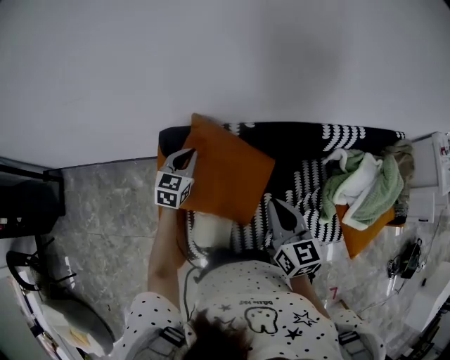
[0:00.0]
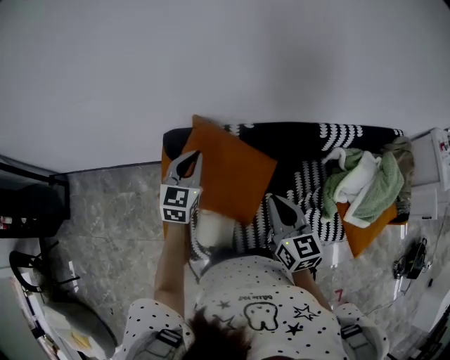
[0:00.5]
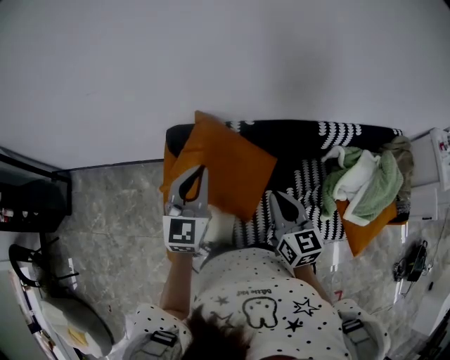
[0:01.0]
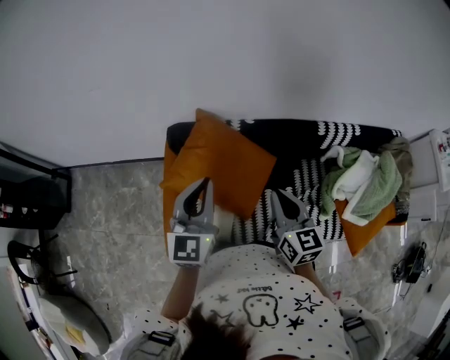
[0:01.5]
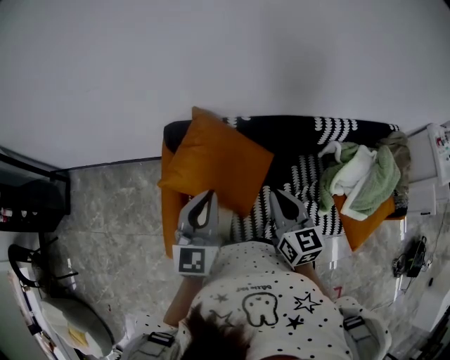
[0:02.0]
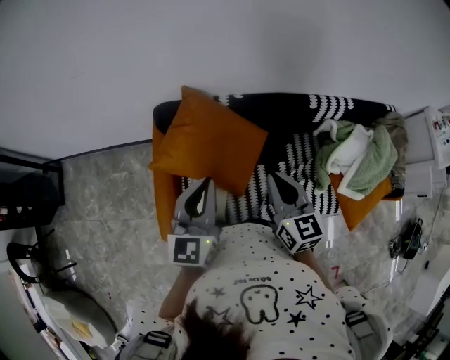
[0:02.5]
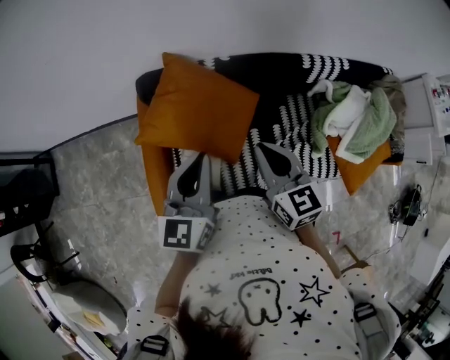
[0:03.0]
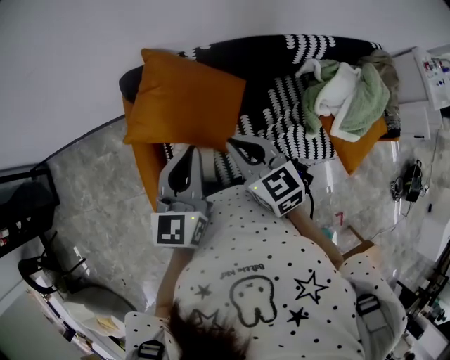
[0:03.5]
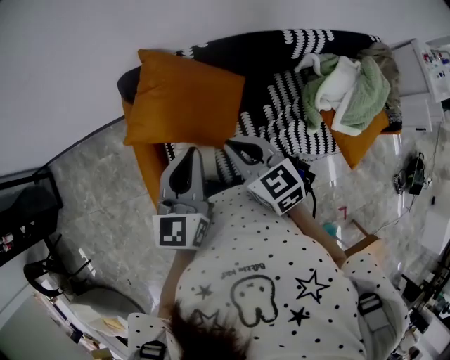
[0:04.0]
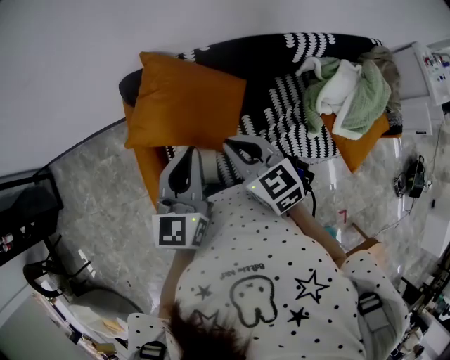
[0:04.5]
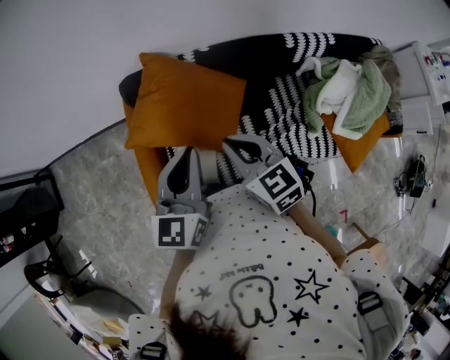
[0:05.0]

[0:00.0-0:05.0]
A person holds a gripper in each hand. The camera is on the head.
0:00.0 to 0:02.5: The right gripper moves backward, some 5 cm. The left gripper shifts some 30 cm backward and upward, and changes its angle by about 20 degrees.
0:02.5 to 0:05.0: The right gripper moves to the left, roughly 5 cm.

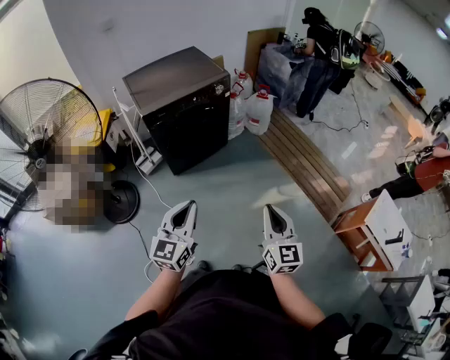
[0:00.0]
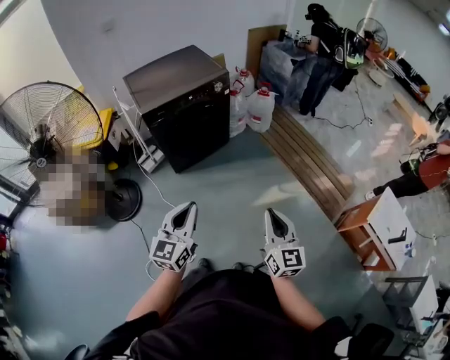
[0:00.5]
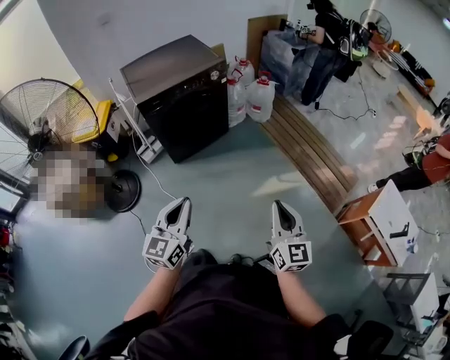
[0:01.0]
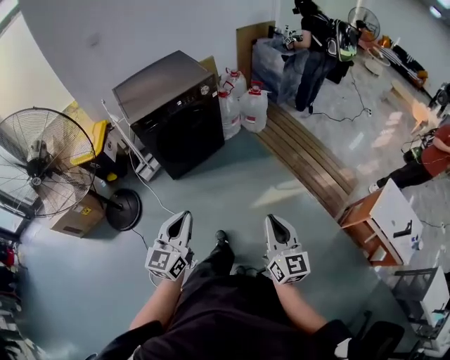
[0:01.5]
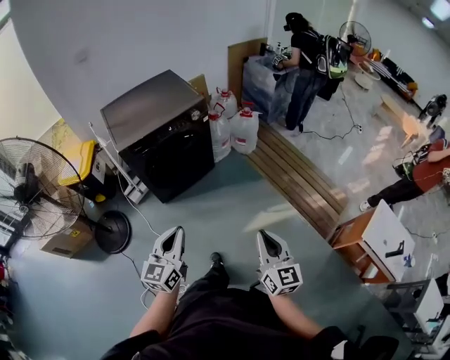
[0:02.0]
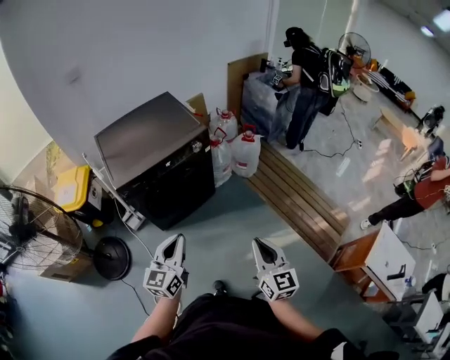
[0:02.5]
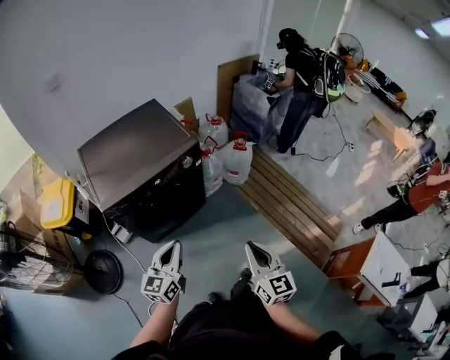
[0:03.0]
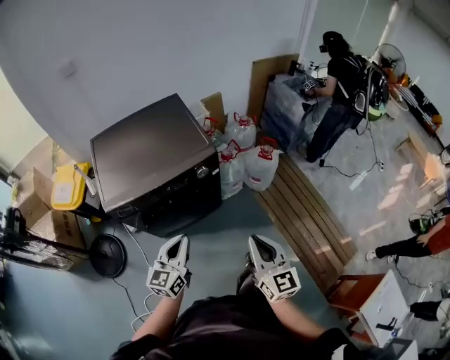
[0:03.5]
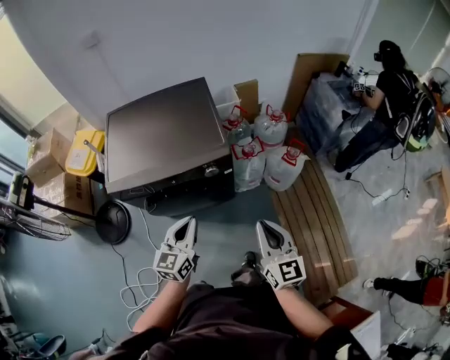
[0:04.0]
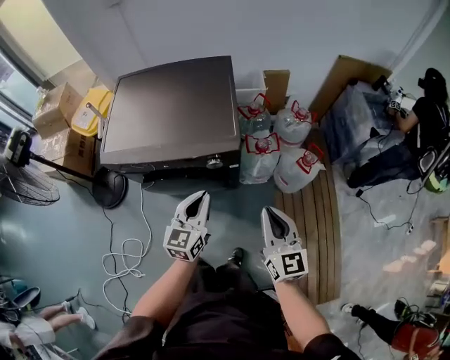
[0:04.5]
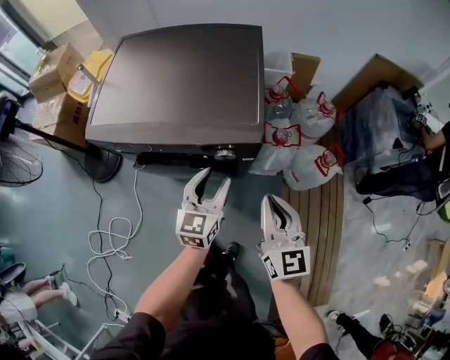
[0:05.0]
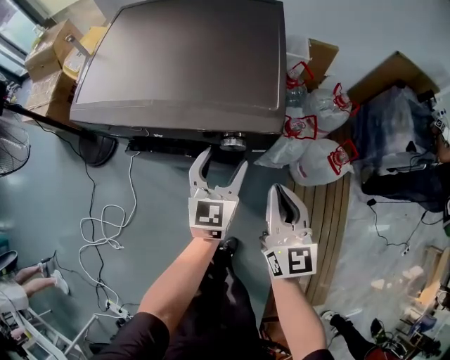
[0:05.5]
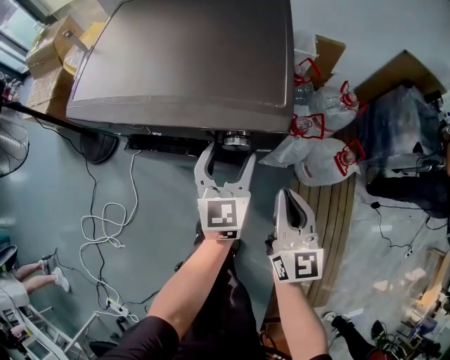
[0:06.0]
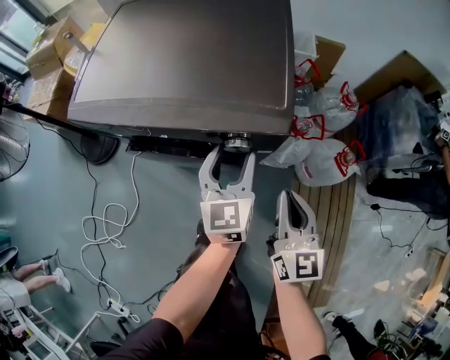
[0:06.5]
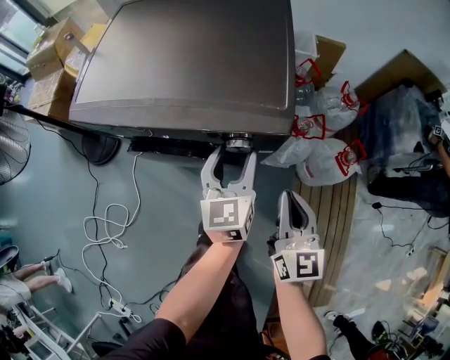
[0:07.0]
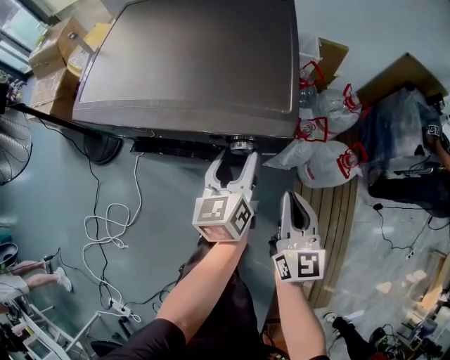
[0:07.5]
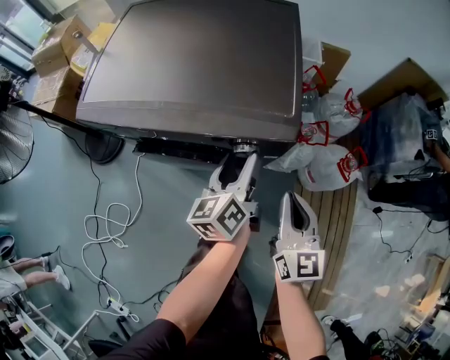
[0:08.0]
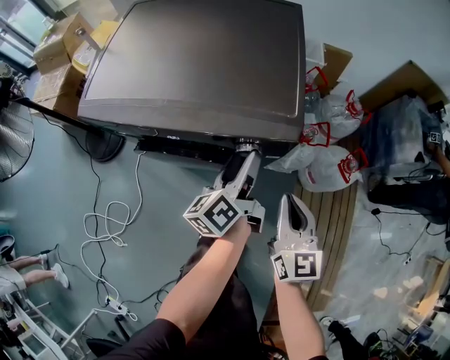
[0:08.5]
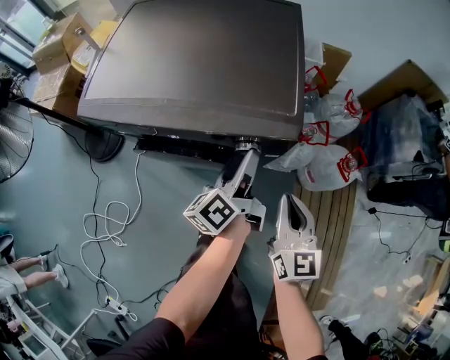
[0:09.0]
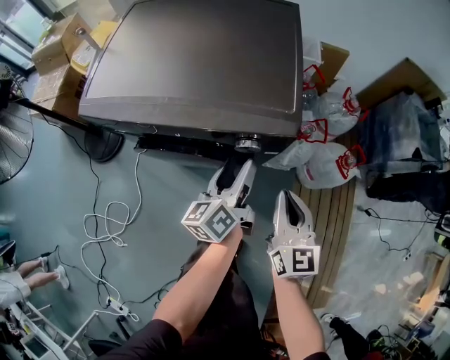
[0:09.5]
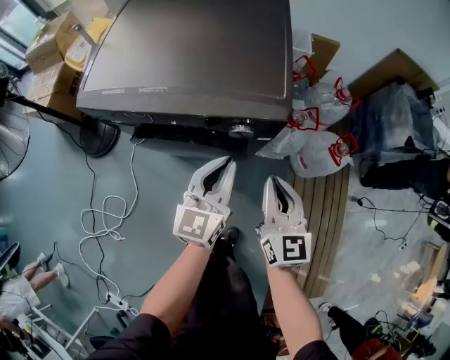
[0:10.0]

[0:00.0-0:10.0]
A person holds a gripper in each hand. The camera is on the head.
0:00.0 to 0:02.0: The right gripper travels to the right and forward by about 10 cm; the left gripper heads forward, covering approximately 10 cm.
0:02.0 to 0:04.0: Both grippers are carried forward, some 50 cm. The right gripper swivels roughly 30 degrees, while the left gripper changes its angle by about 20 degrees.
0:04.0 to 0:06.0: The left gripper is displaced forward and downward by approximately 30 cm, changes its angle by some 30 degrees, and opens its fingers. The right gripper moves downward and forward, roughly 30 cm.
0:06.0 to 0:08.0: The left gripper rotates around the line of its fingers by about 40 degrees, counterclockwise from behind.
0:08.0 to 0:10.0: The left gripper moves backward, about 5 cm, changes its angle by some 40 degrees, and closes its fingers.

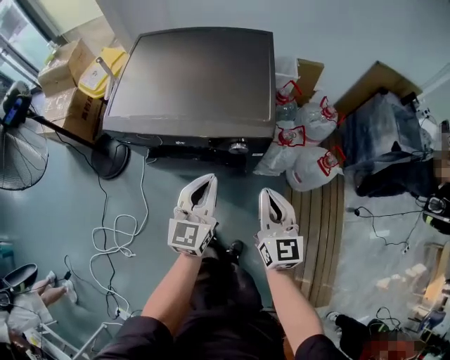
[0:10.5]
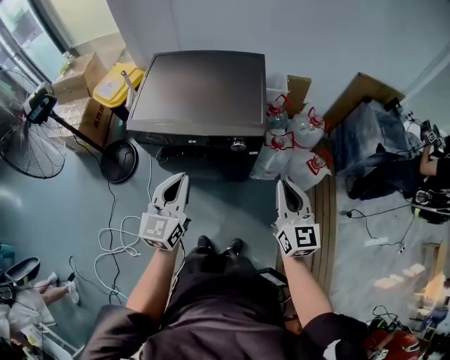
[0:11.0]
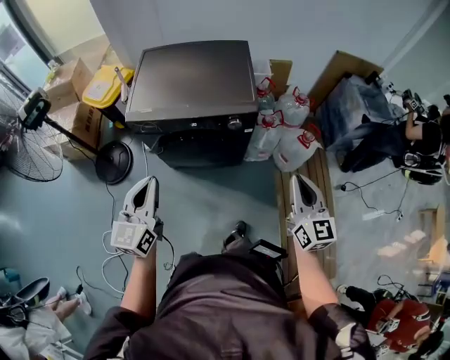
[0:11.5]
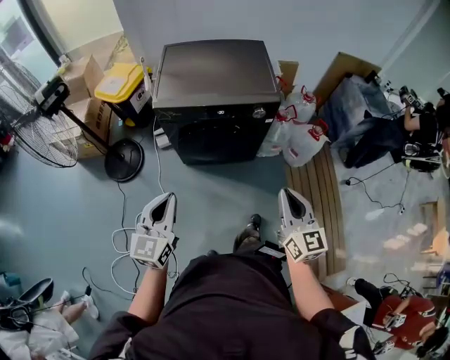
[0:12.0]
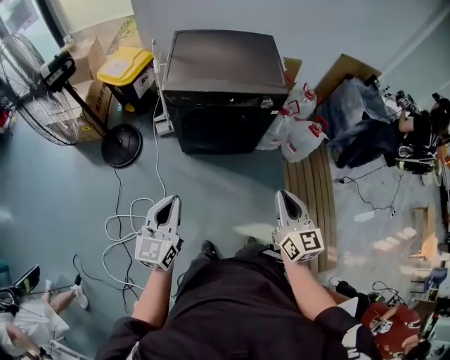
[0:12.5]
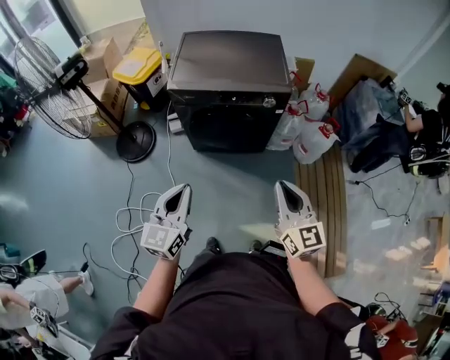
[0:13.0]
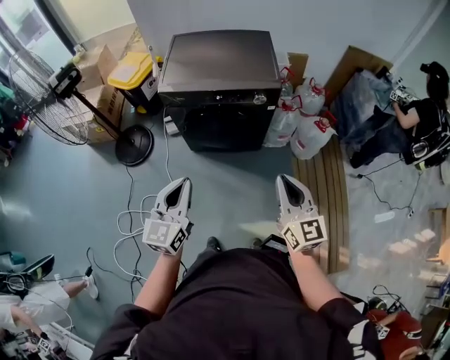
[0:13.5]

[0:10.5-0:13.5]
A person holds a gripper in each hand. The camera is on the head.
0:10.5 to 0:12.0: The right gripper shifts approximately 35 cm backward and upward; the left gripper is displaced backward, to the left and upward by about 50 cm.
0:12.0 to 0:13.5: The left gripper travels to the right by some 10 cm.

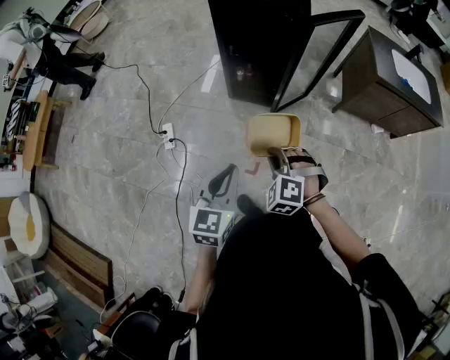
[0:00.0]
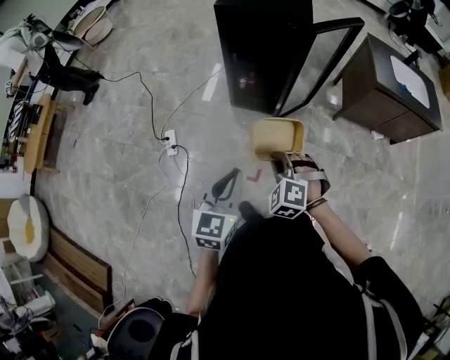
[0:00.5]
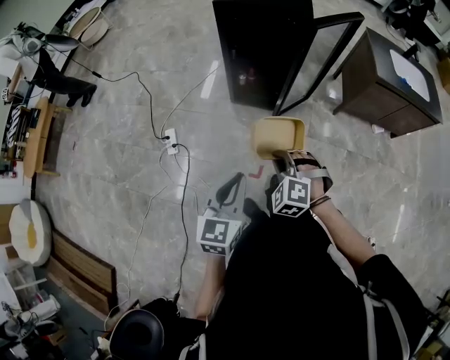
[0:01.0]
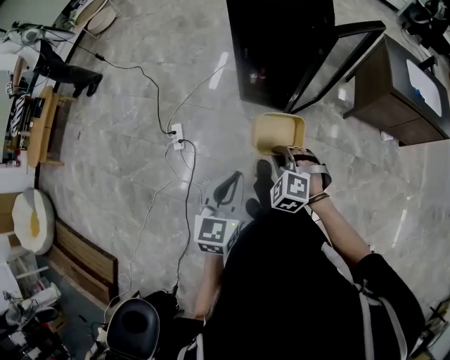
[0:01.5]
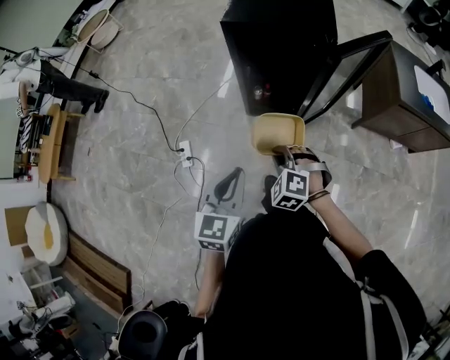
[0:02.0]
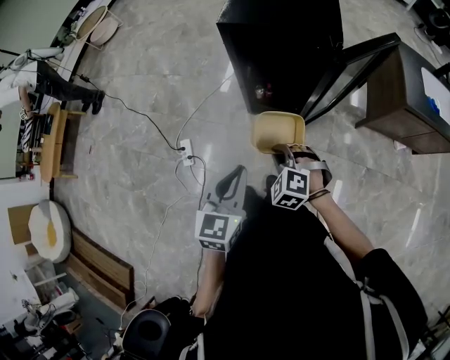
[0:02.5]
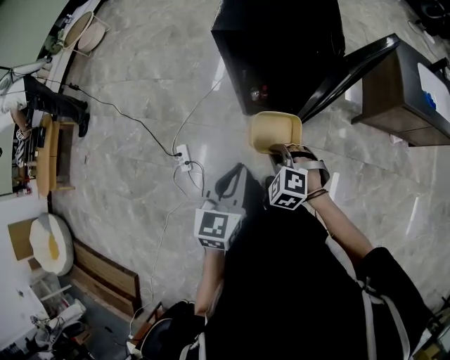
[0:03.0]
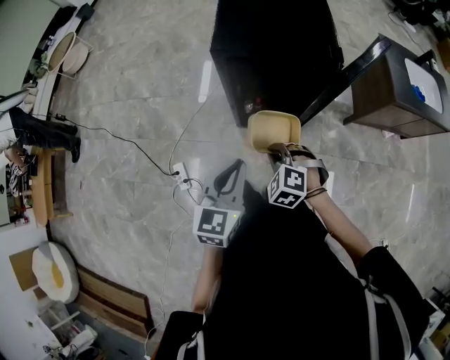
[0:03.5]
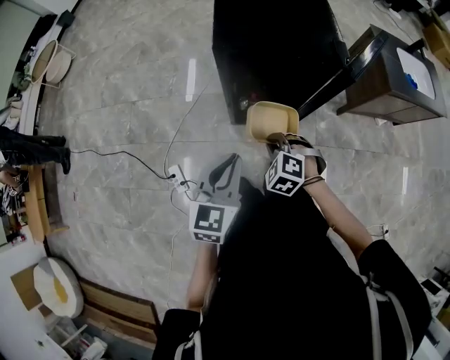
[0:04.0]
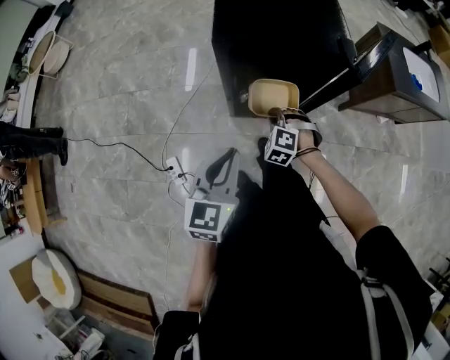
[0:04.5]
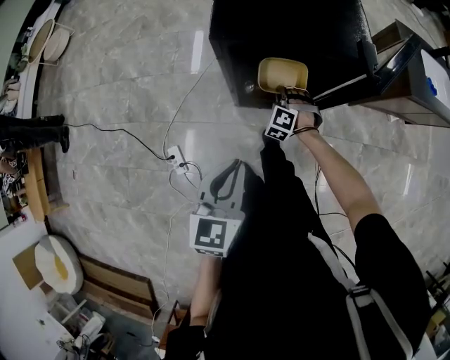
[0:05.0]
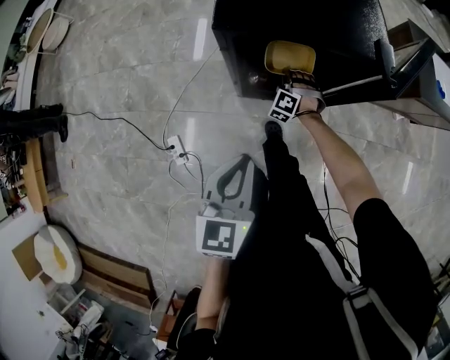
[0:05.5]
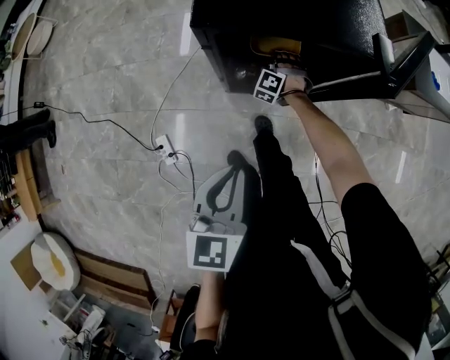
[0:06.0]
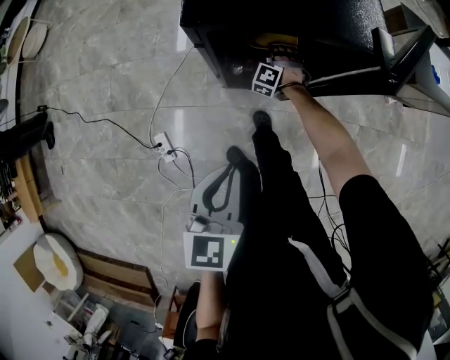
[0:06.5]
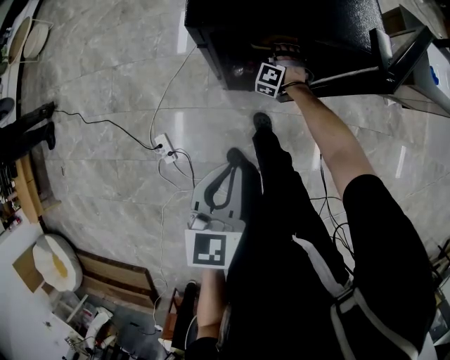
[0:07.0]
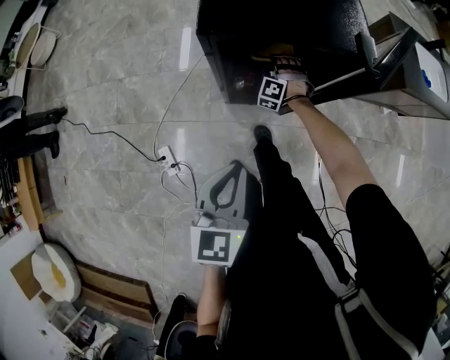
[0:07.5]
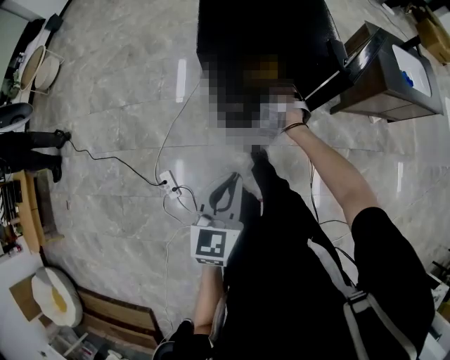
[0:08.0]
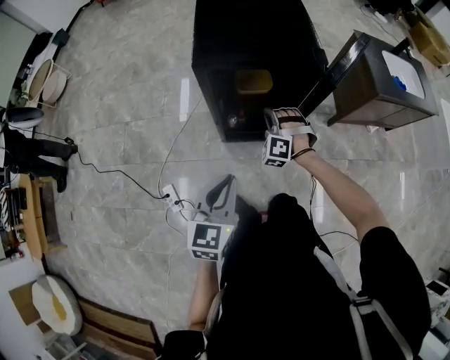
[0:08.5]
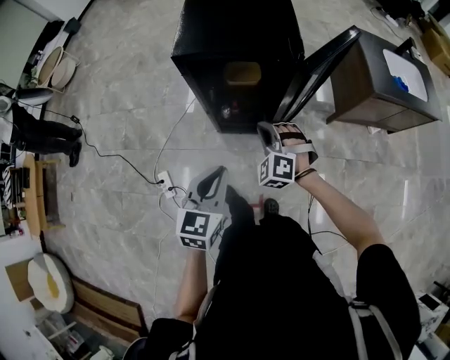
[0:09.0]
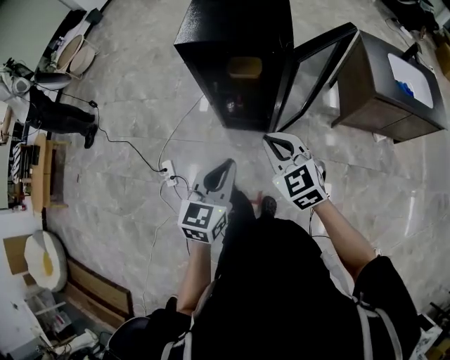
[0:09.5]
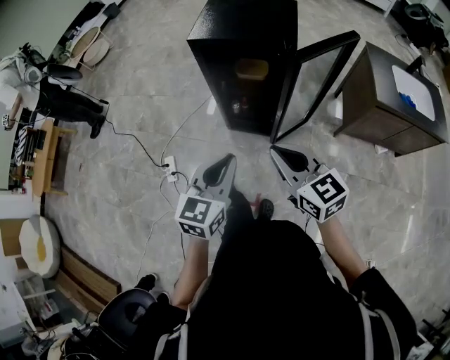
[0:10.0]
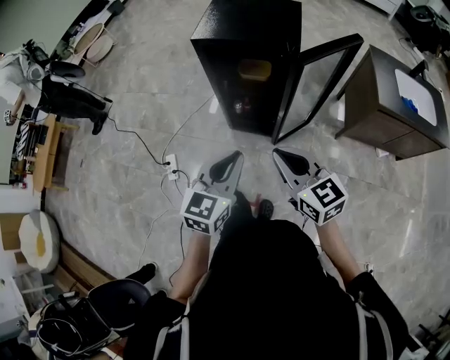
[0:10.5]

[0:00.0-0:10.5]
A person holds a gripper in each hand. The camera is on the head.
0:00.0 to 0:02.0: Both grippers travel together forward, about 15 cm.
0:02.0 to 0:04.0: Both grippers travel together forward, roughly 20 cm.
0:04.0 to 0:06.5: The right gripper heads forward and downward, covering roughly 40 cm, and turns by roughly 30 degrees. Meanwhile the left gripper shifts some 5 cm forward.
0:06.5 to 0:08.5: The right gripper shifts approximately 25 cm upward and backward, and opens and closes again. The left gripper shifts some 5 cm backward.
0:08.5 to 0:10.5: The right gripper changes place by roughly 40 cm, and swivels some 90 degrees. The left gripper shifts by about 20 cm.
